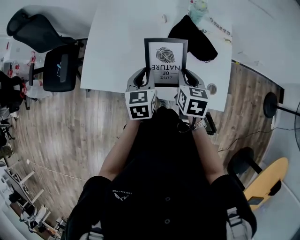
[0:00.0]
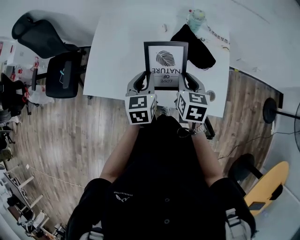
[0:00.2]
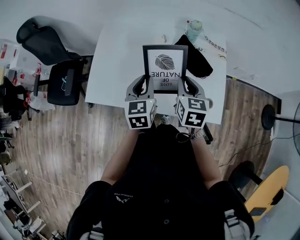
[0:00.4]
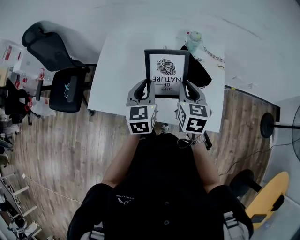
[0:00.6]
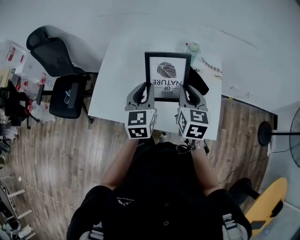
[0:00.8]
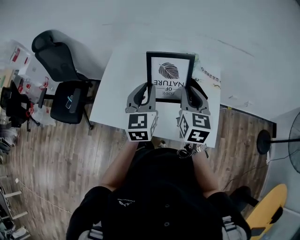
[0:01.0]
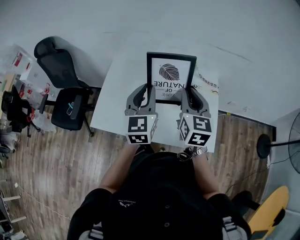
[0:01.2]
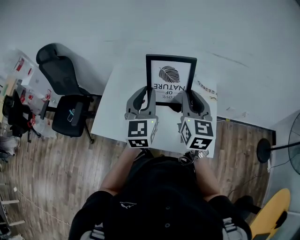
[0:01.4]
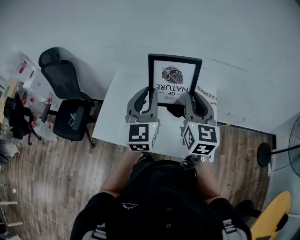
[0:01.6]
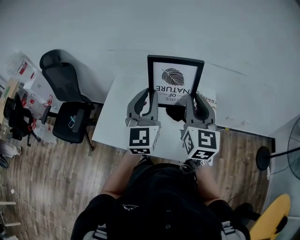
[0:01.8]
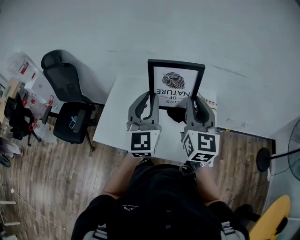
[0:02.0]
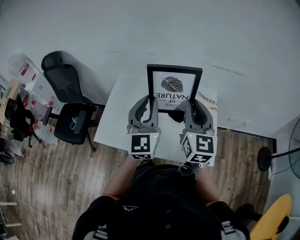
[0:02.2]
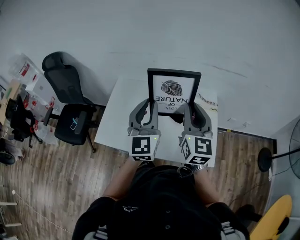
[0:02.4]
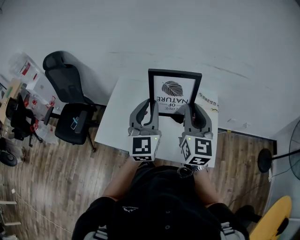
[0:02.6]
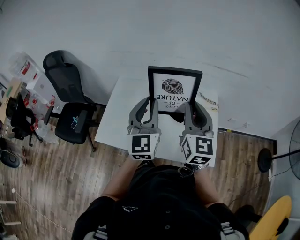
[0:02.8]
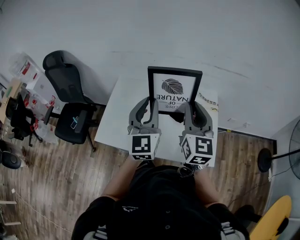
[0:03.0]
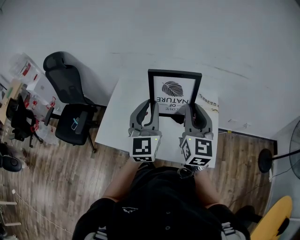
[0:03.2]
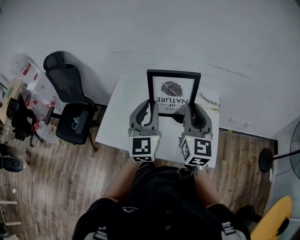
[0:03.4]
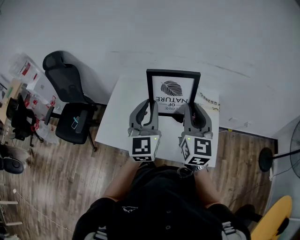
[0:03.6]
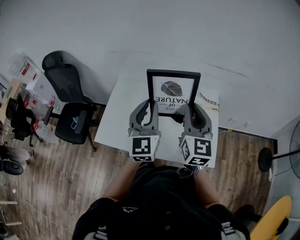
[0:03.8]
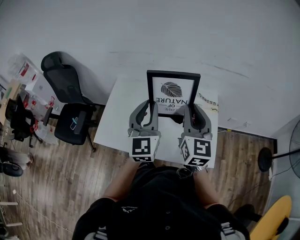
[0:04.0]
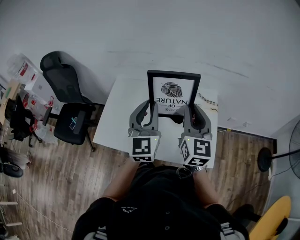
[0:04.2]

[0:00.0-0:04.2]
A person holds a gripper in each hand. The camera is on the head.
0:00.0 to 0:01.4: Both grippers travel together upward, some 25 cm. The left gripper points its fingers roughly 30 degrees further upward. The right gripper points its fingers about 30 degrees further upward.
0:02.8 to 0:04.2: The grippers move only a little.

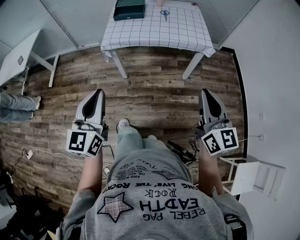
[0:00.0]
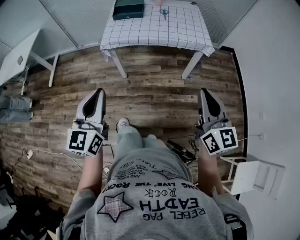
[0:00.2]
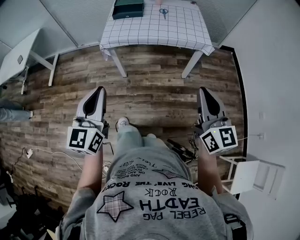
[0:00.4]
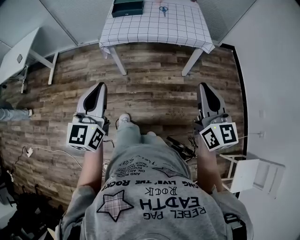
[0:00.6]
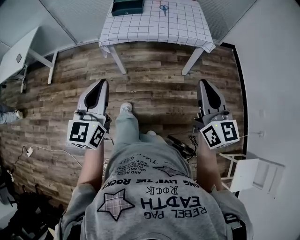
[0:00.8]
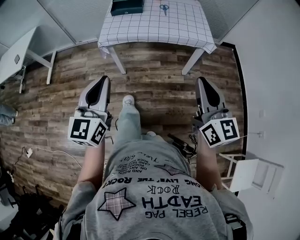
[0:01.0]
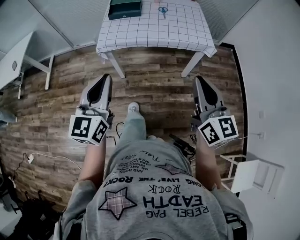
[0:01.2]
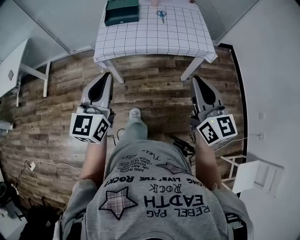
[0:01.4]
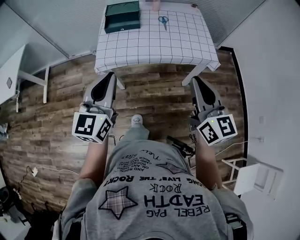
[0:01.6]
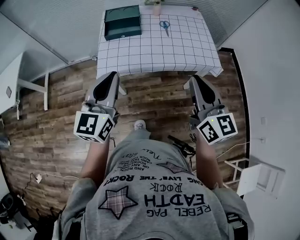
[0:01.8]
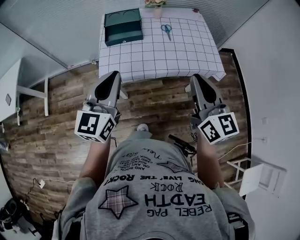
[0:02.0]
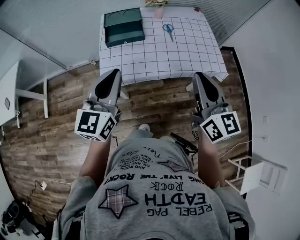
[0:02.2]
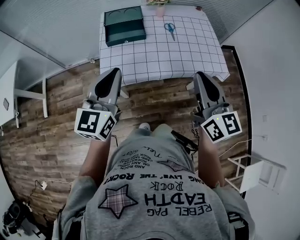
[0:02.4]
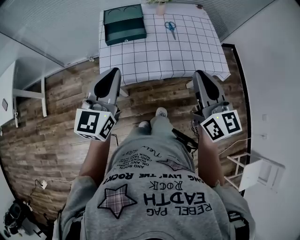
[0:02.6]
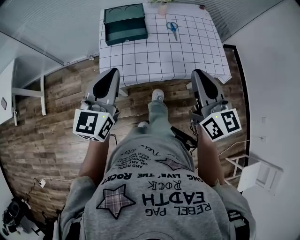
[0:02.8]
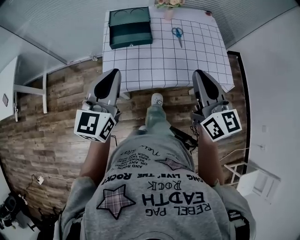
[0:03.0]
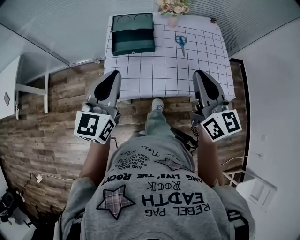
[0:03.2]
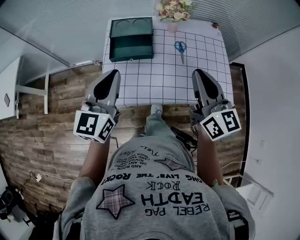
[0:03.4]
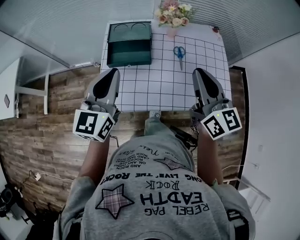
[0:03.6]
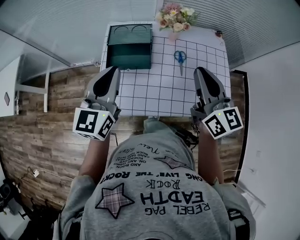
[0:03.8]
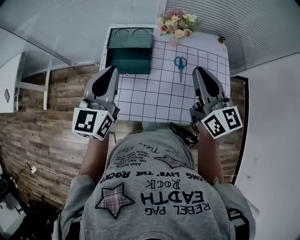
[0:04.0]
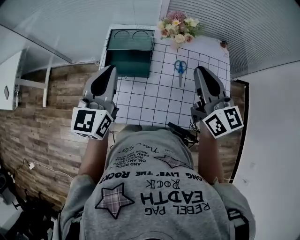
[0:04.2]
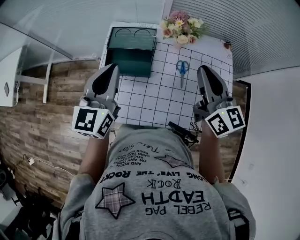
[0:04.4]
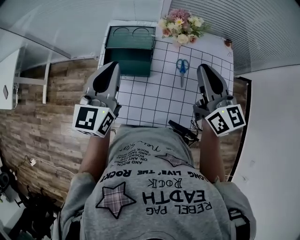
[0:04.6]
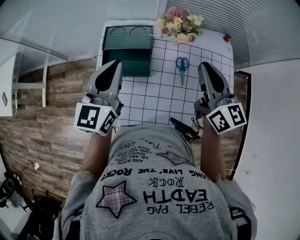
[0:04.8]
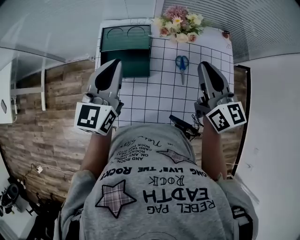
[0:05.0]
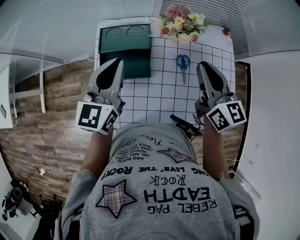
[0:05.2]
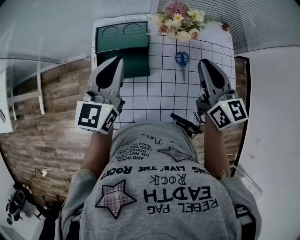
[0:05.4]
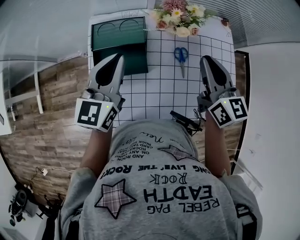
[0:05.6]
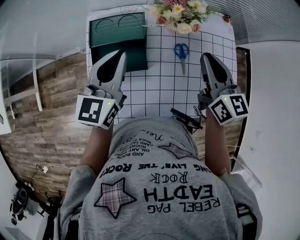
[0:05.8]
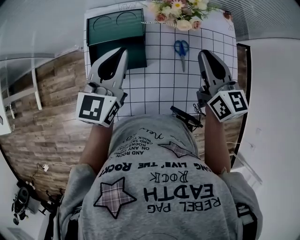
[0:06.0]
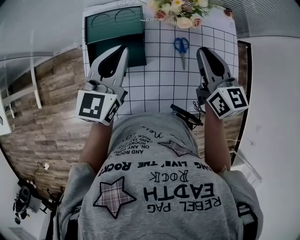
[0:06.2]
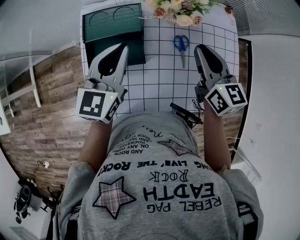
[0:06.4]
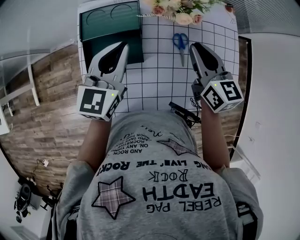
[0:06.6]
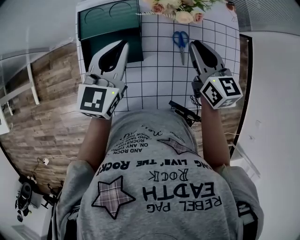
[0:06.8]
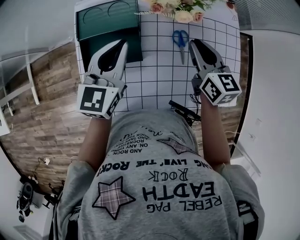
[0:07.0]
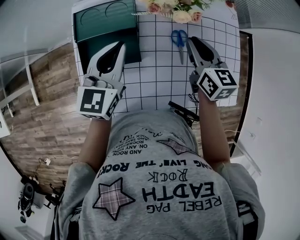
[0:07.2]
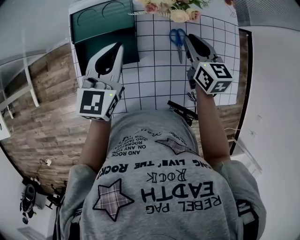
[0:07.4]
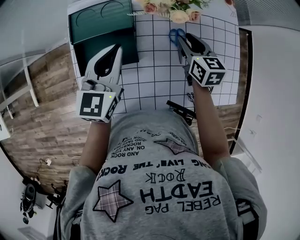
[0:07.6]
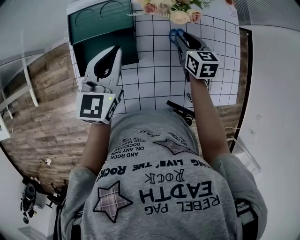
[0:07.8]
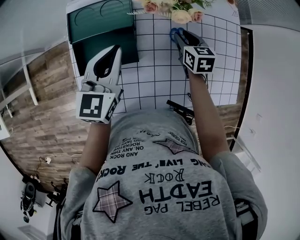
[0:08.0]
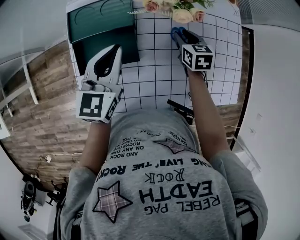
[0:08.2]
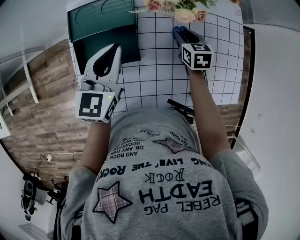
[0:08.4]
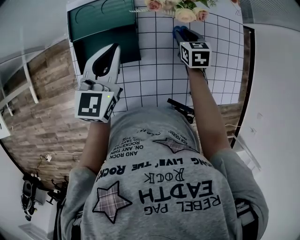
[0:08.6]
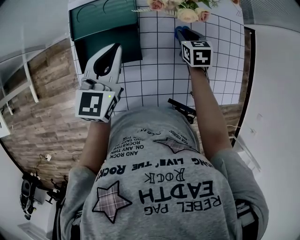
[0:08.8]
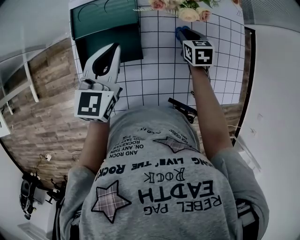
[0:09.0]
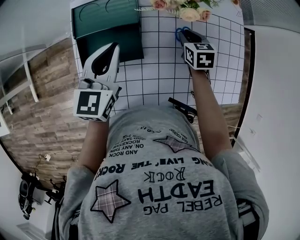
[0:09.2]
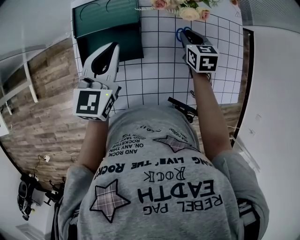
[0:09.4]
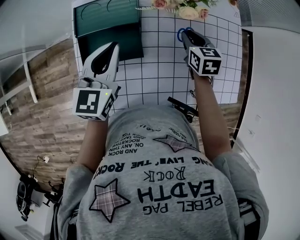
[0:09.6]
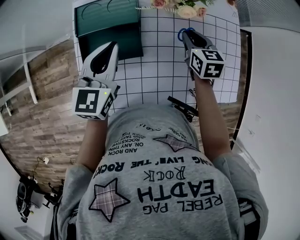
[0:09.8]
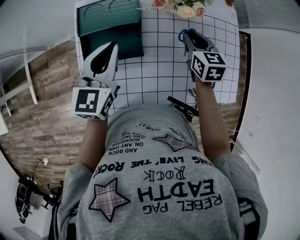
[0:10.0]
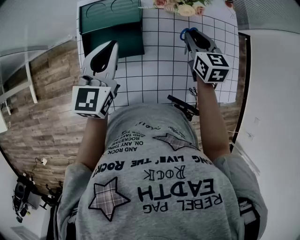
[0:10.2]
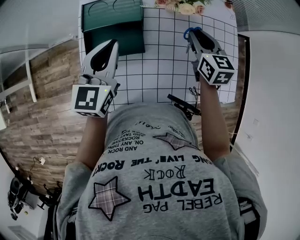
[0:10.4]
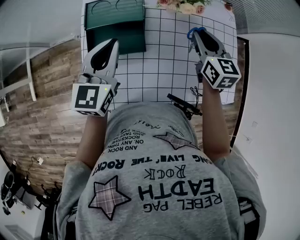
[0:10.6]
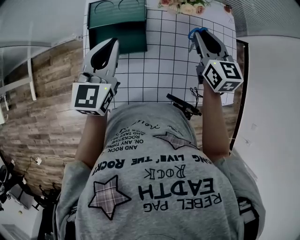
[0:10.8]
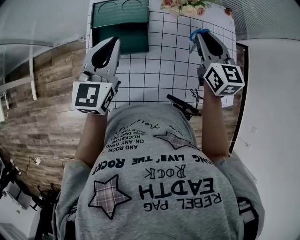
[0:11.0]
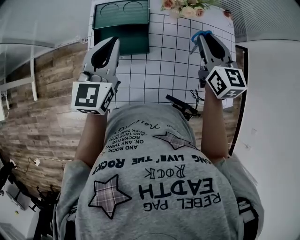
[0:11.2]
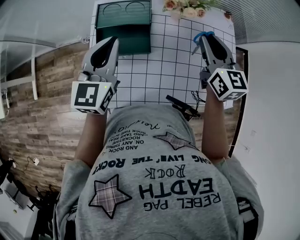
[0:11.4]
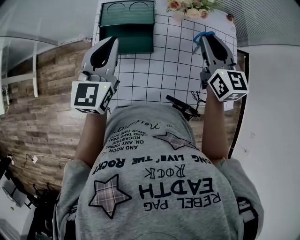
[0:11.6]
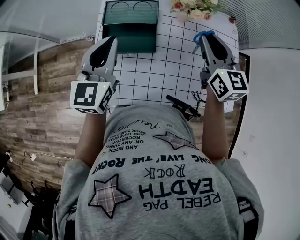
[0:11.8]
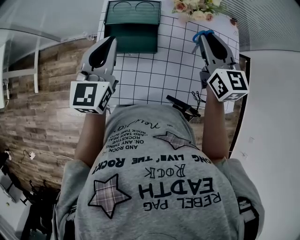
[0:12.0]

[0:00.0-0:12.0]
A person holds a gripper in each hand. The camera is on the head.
0:00.0 to 0:01.6: Both grippers move forward, some 25 cm.
0:01.6 to 0:03.0: The left gripper goes some 20 cm forward. The right gripper goes some 20 cm forward and to the left.
0:03.0 to 0:04.4: The two grippers go about 25 cm forward.
0:04.4 to 0:06.0: The right gripper is displaced downward and forward by roughly 10 cm, while the left gripper goes about 10 cm forward and downward.
0:06.0 to 0:07.6: The left gripper moves downward, about 5 cm, while the right gripper is displaced downward by roughly 15 cm, and opens up.
0:07.6 to 0:09.0: The right gripper moves downward, about 10 cm.
0:09.0 to 0:10.4: The left gripper moves roughly 5 cm. Meanwhile the right gripper goes some 15 cm upward, and changes its angle by some 20 degrees.
0:10.4 to 0:12.0: The left gripper travels to the left and upward by about 10 cm. Meanwhile the right gripper heads upward and to the left, covering roughly 15 cm.

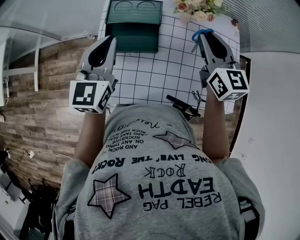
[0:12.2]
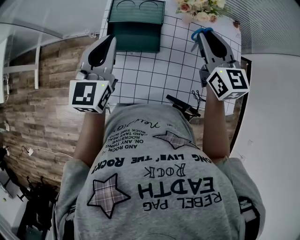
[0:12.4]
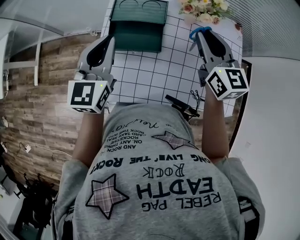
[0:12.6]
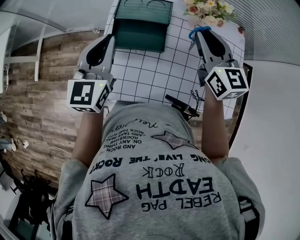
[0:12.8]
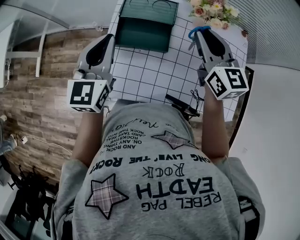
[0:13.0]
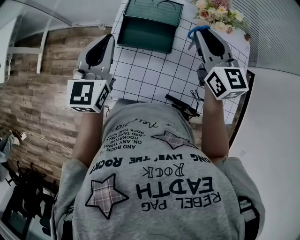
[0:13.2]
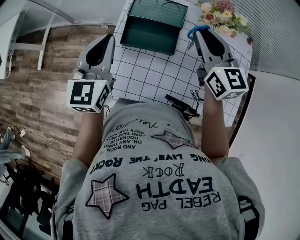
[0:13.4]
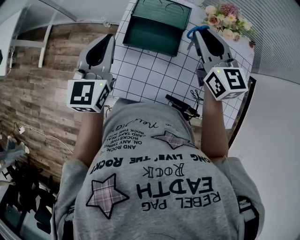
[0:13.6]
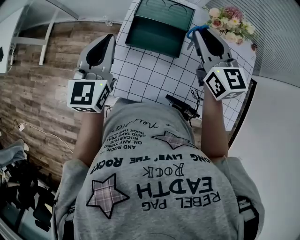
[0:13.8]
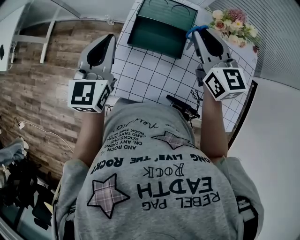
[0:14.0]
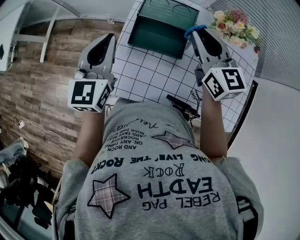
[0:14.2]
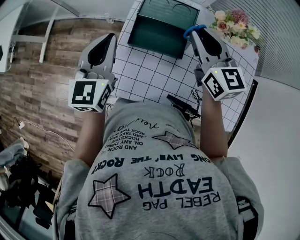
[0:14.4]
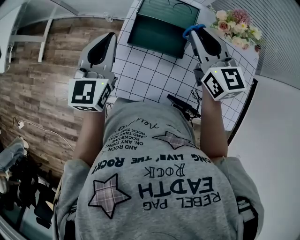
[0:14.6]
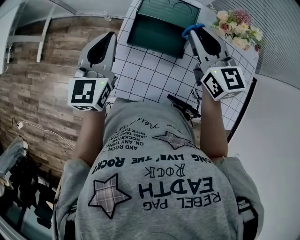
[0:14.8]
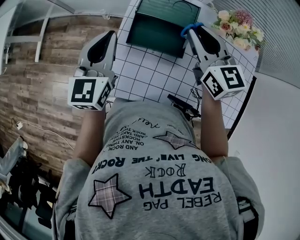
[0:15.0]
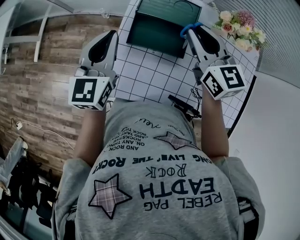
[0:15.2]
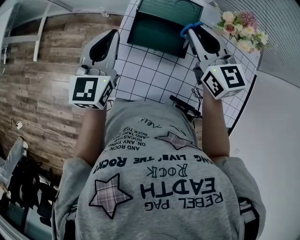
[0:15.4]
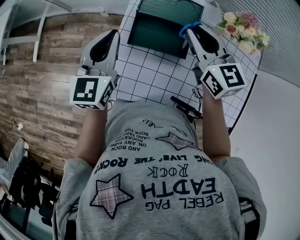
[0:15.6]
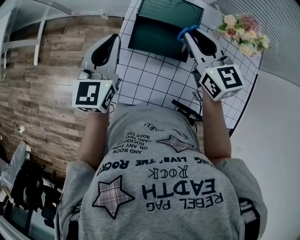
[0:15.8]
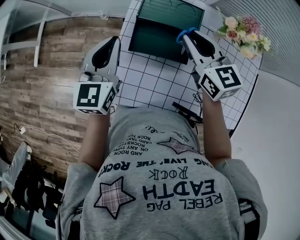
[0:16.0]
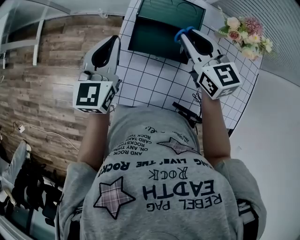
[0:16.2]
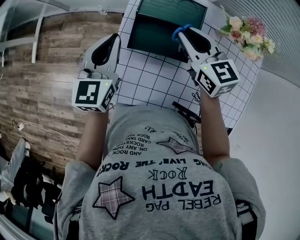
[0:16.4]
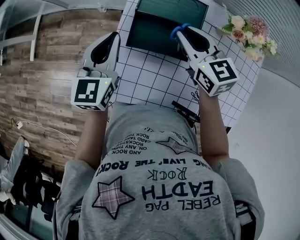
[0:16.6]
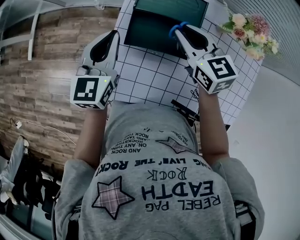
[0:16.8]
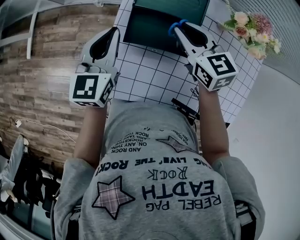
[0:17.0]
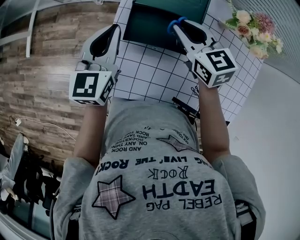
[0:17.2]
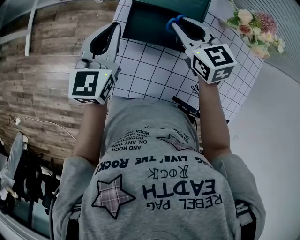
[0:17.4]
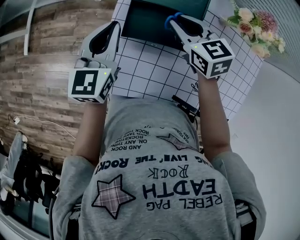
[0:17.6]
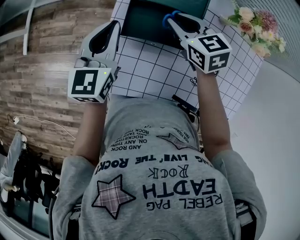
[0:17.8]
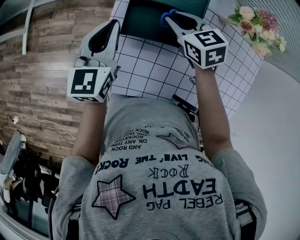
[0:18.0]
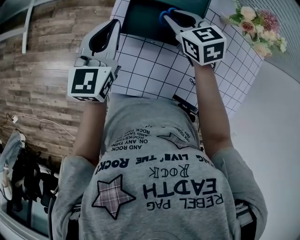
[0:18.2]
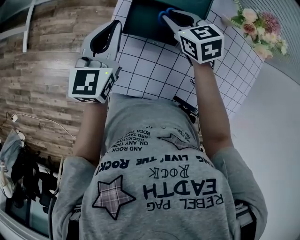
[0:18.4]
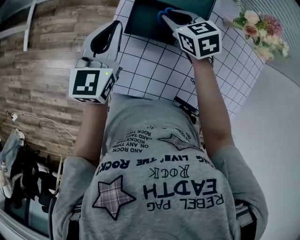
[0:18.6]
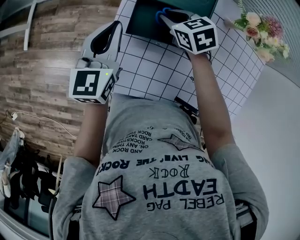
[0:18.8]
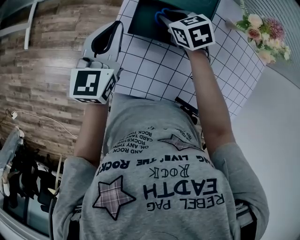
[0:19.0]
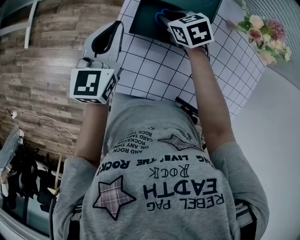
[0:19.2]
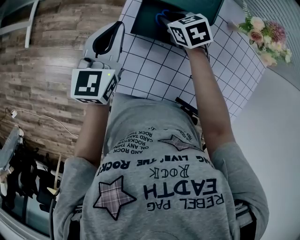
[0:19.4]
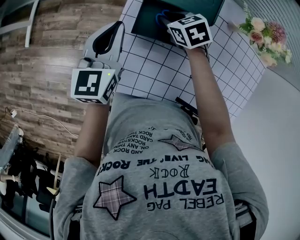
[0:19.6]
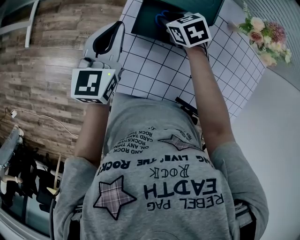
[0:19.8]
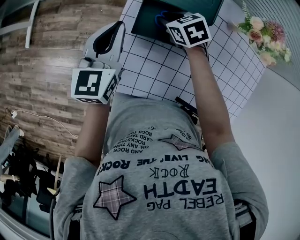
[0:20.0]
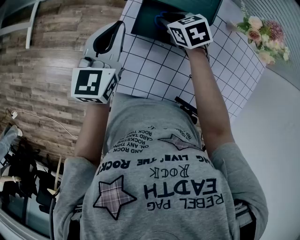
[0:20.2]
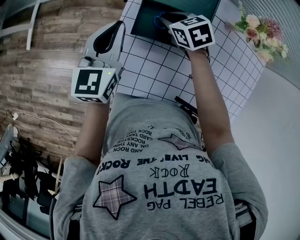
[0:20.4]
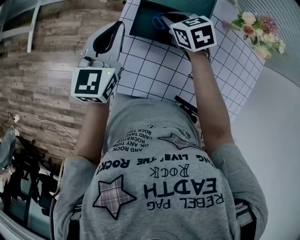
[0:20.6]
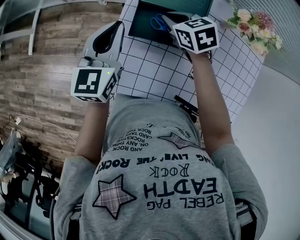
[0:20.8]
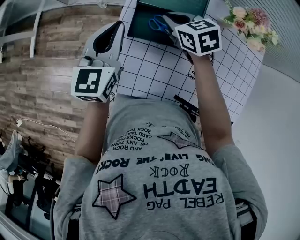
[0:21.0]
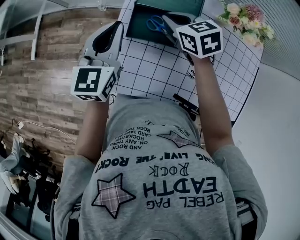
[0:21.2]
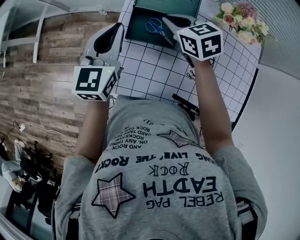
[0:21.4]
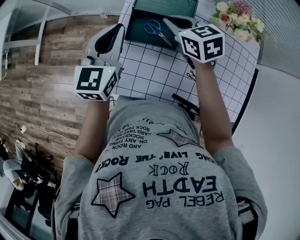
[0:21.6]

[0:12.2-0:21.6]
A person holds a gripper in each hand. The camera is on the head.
0:12.2 to 0:13.8: The grippers both shift to the left by about 10 cm.
0:13.8 to 0:15.4: The left gripper shifts by roughly 5 cm, while the right gripper shifts by roughly 5 cm.
0:15.4 to 0:17.0: The left gripper heads downward, covering about 5 cm; the right gripper travels downward by approximately 10 cm.
0:17.0 to 0:18.4: The right gripper is displaced downward by approximately 10 cm.
0:18.4 to 0:20.0: The right gripper moves downward, some 5 cm.
0:20.0 to 0:21.6: The left gripper moves upward, some 5 cm, while the right gripper goes roughly 15 cm upward, and changes its angle by about 20 degrees.
